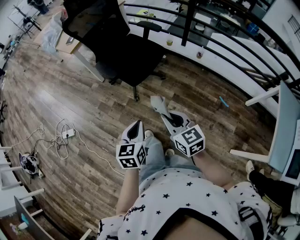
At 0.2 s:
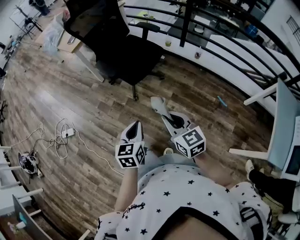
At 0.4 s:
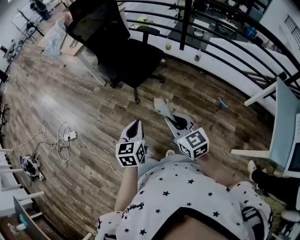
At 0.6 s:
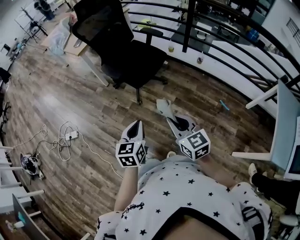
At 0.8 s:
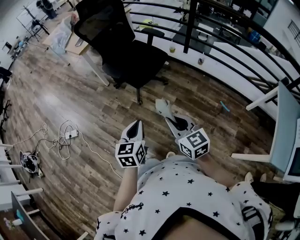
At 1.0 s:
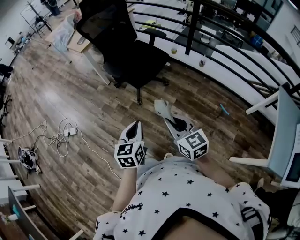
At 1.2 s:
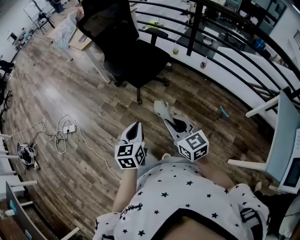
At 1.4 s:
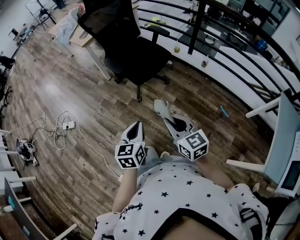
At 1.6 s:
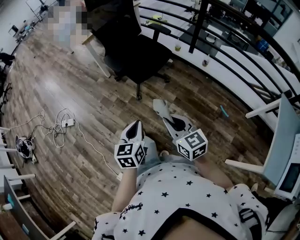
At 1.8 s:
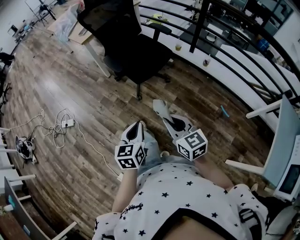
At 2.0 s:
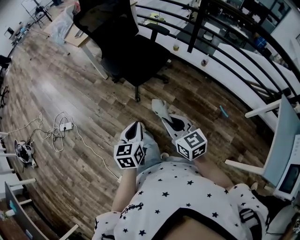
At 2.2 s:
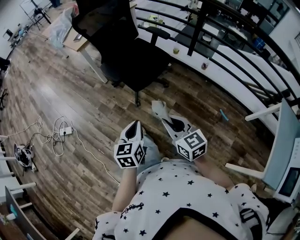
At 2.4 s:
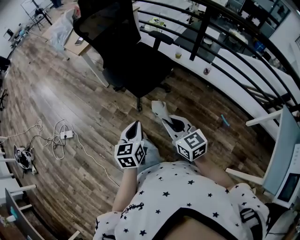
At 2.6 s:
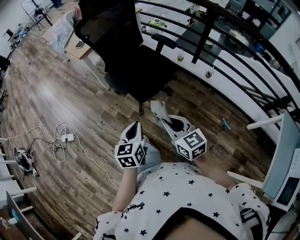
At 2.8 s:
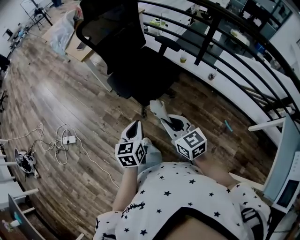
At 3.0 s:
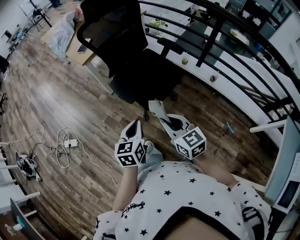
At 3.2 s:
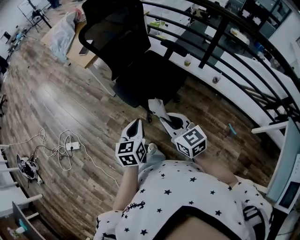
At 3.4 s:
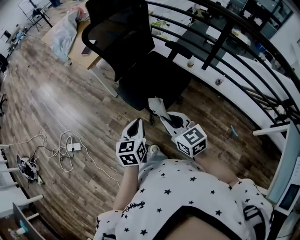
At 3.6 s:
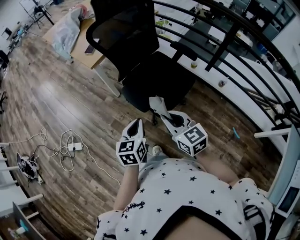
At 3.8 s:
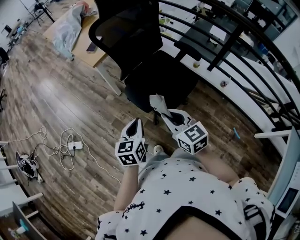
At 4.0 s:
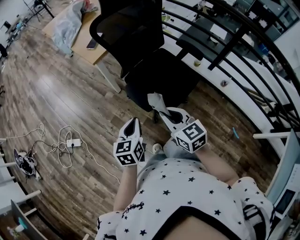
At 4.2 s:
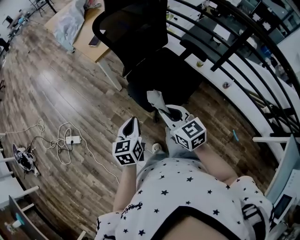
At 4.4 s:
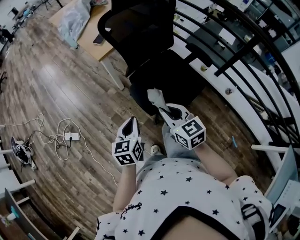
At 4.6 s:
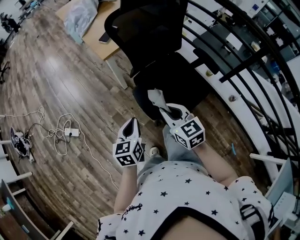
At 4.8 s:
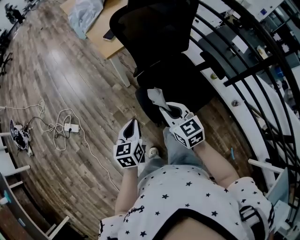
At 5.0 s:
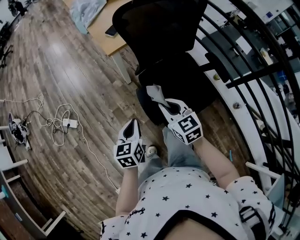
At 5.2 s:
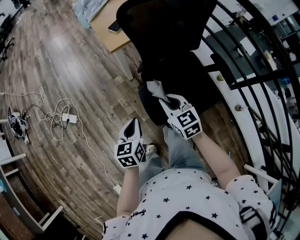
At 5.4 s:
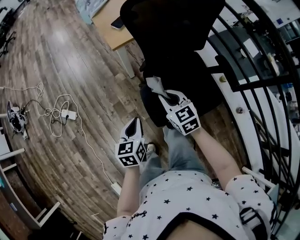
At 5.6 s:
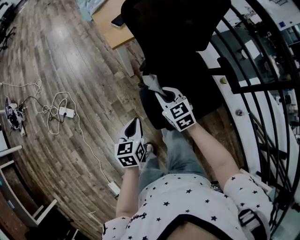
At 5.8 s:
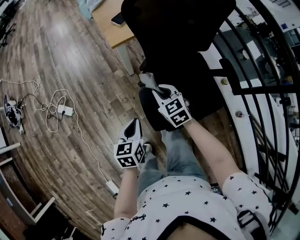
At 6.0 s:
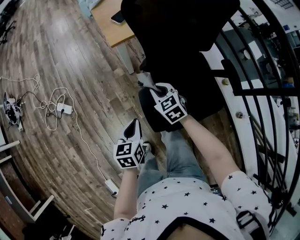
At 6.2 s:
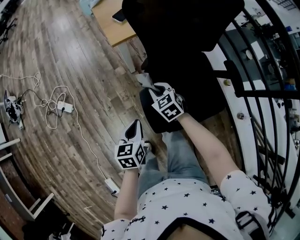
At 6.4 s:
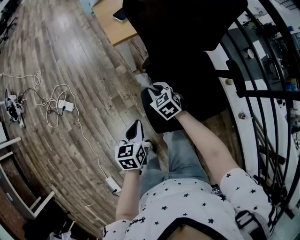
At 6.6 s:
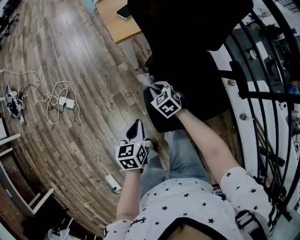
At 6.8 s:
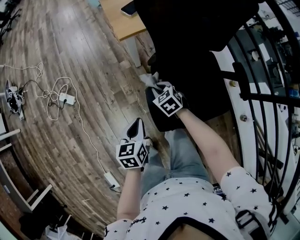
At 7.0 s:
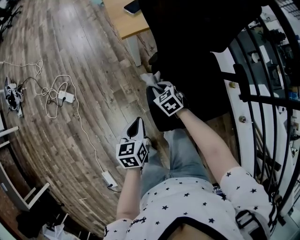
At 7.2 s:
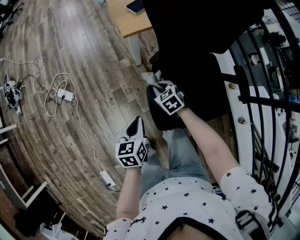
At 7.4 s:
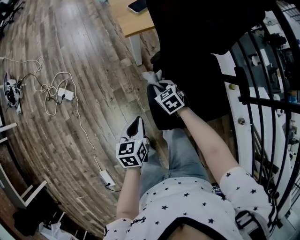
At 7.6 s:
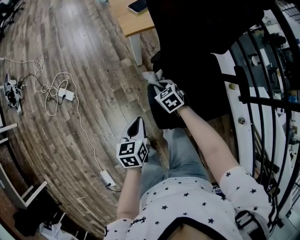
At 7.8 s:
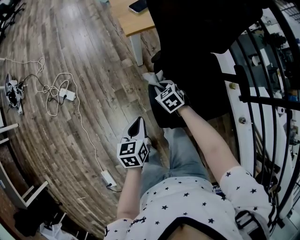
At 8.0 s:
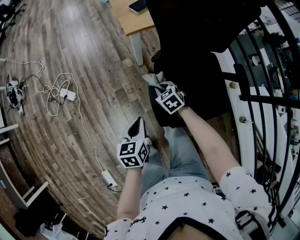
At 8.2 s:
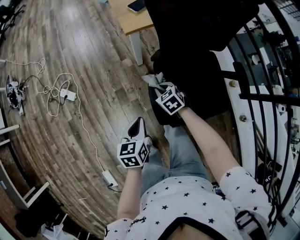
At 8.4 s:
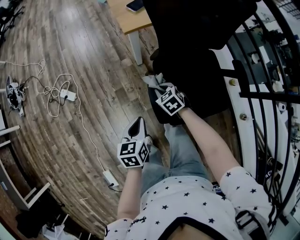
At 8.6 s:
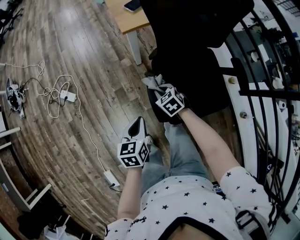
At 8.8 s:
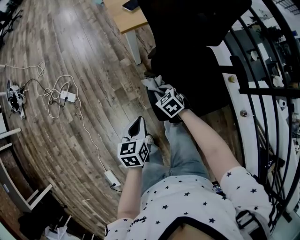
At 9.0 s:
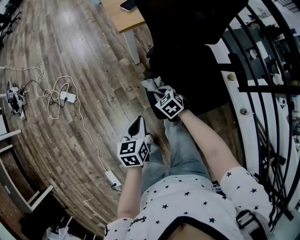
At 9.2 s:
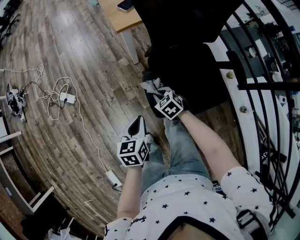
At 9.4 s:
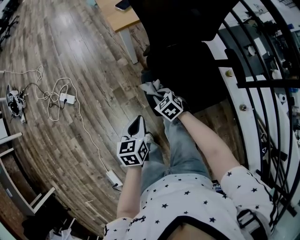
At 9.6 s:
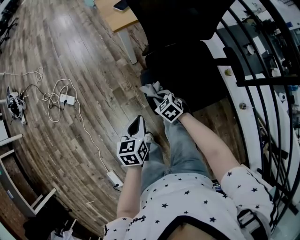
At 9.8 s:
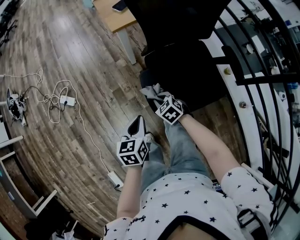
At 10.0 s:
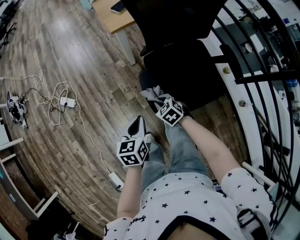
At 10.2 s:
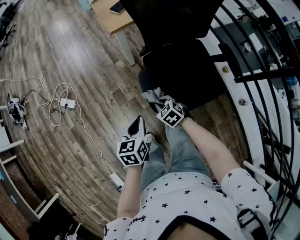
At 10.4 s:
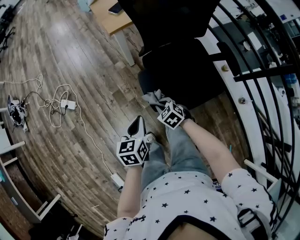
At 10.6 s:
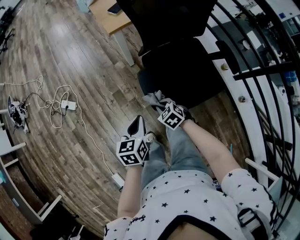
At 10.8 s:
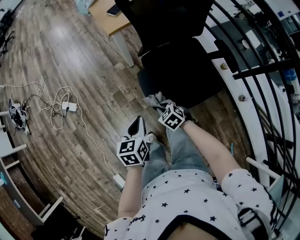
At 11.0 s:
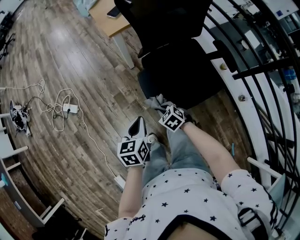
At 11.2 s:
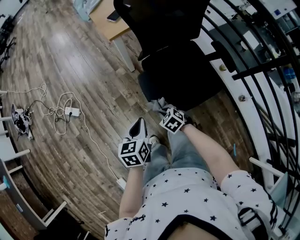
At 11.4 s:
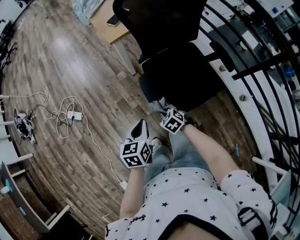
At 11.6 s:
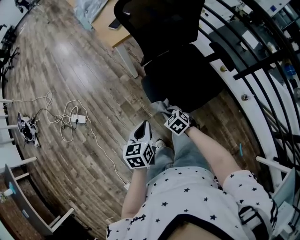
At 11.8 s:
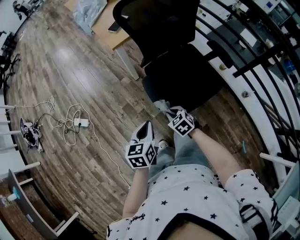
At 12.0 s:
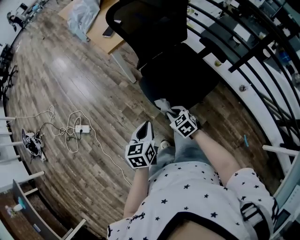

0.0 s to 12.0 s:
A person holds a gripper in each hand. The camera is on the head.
0.0 to 1.6 s: The right gripper goes roughly 5 cm backward. The left gripper ends up about 5 cm from where it was.
1.6 to 3.0 s: Both grippers move forward, some 25 cm.
3.0 to 4.4 s: Both grippers travel together forward and to the left, approximately 20 cm.
4.4 to 6.0 s: The left gripper heads downward and forward, covering approximately 15 cm, and rotates approximately 20 degrees, while the right gripper shifts some 30 cm forward and downward, and swivels approximately 30 degrees.
6.0 to 7.6 s: The right gripper heads downward, covering roughly 10 cm.
7.6 to 9.0 s: The right gripper shifts about 10 cm backward.
9.0 to 10.4 s: The right gripper moves backward, approximately 10 cm.
10.4 to 12.0 s: The right gripper is displaced upward and backward by roughly 10 cm, and changes its angle by about 20 degrees; the left gripper ends up approximately 5 cm from where it was.

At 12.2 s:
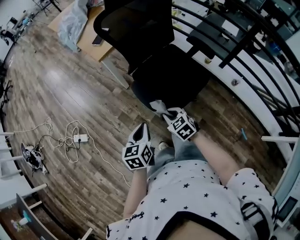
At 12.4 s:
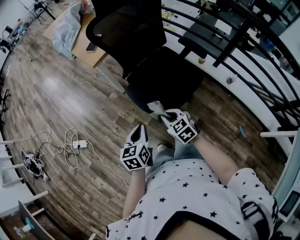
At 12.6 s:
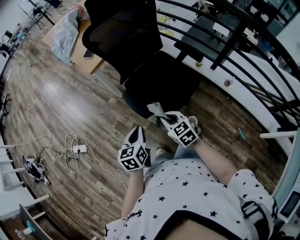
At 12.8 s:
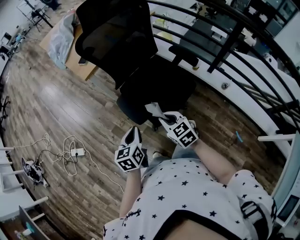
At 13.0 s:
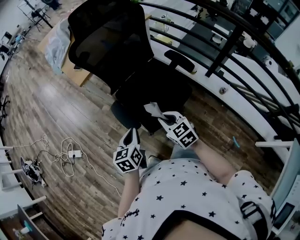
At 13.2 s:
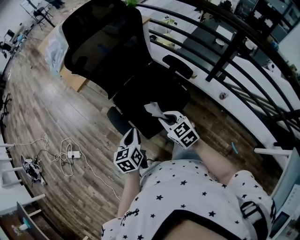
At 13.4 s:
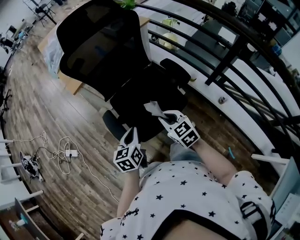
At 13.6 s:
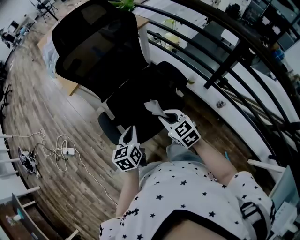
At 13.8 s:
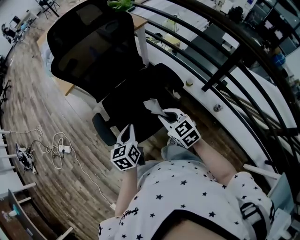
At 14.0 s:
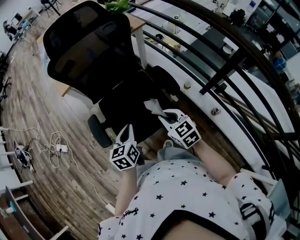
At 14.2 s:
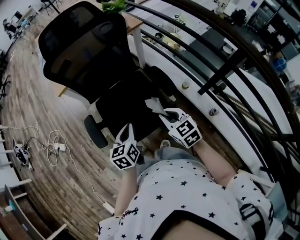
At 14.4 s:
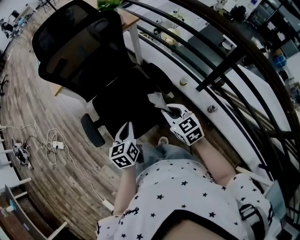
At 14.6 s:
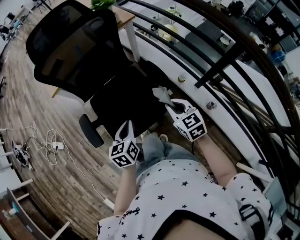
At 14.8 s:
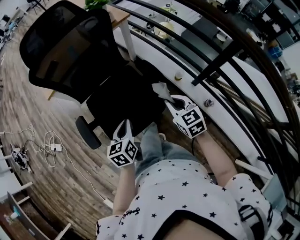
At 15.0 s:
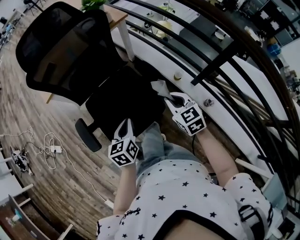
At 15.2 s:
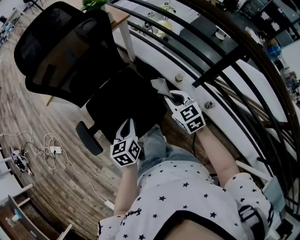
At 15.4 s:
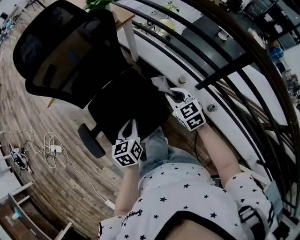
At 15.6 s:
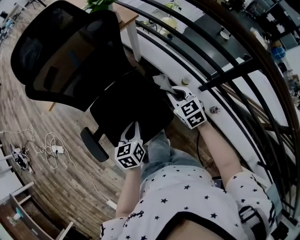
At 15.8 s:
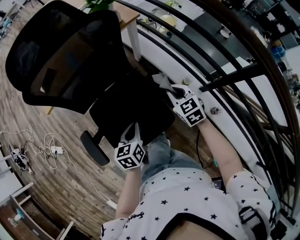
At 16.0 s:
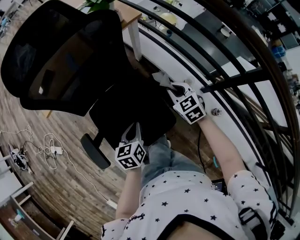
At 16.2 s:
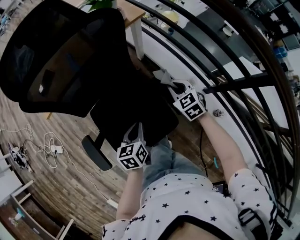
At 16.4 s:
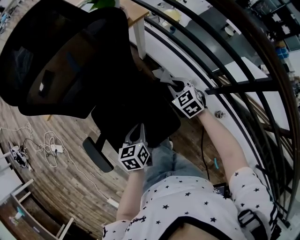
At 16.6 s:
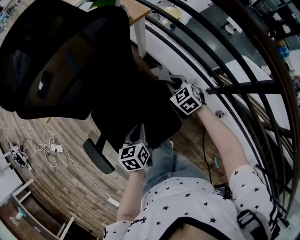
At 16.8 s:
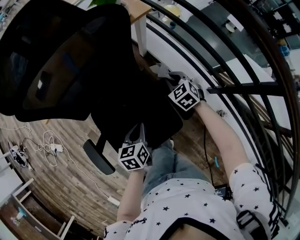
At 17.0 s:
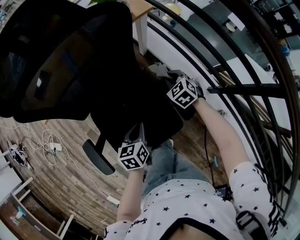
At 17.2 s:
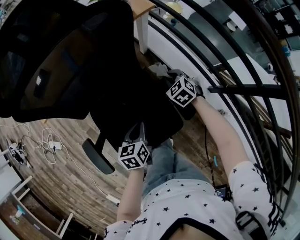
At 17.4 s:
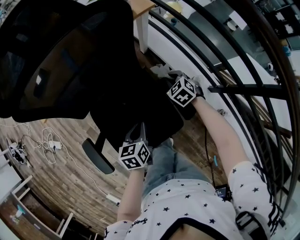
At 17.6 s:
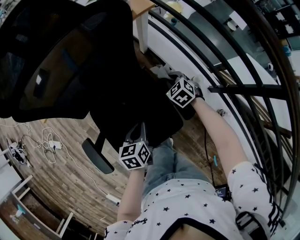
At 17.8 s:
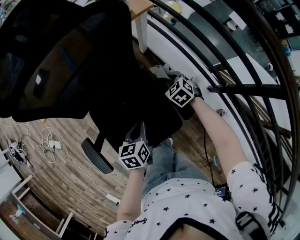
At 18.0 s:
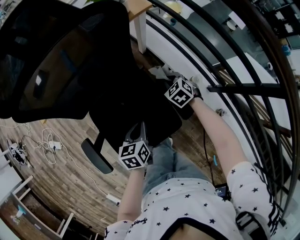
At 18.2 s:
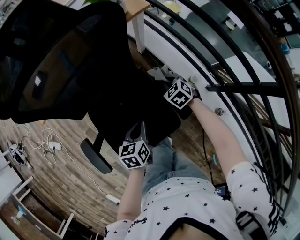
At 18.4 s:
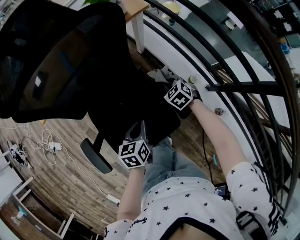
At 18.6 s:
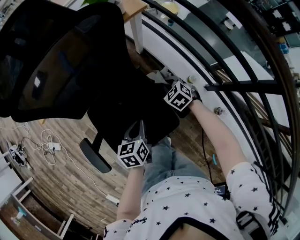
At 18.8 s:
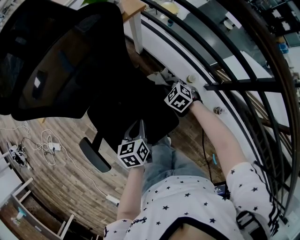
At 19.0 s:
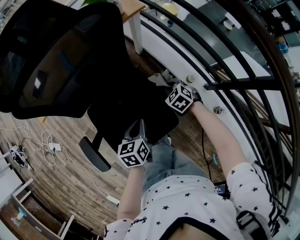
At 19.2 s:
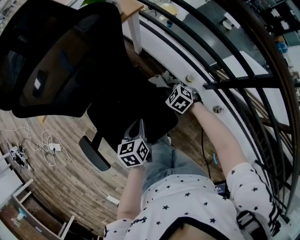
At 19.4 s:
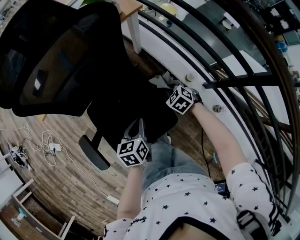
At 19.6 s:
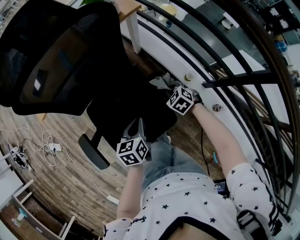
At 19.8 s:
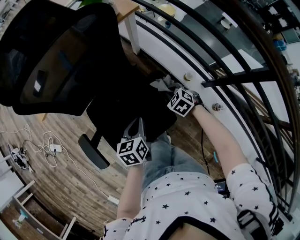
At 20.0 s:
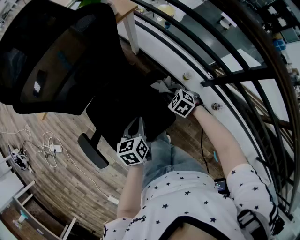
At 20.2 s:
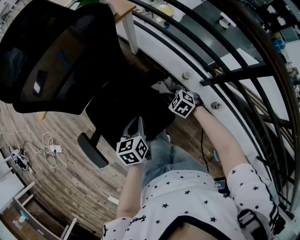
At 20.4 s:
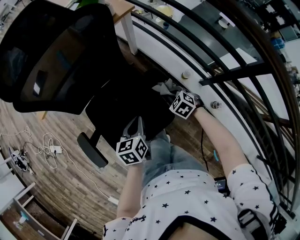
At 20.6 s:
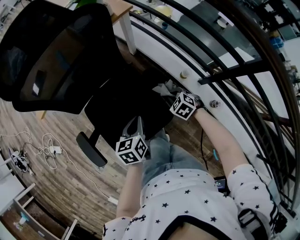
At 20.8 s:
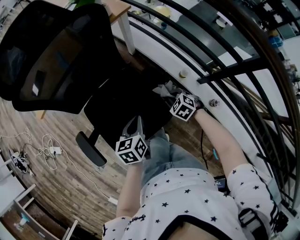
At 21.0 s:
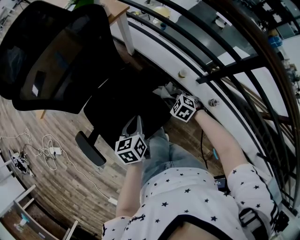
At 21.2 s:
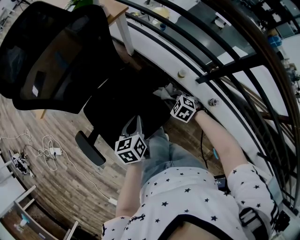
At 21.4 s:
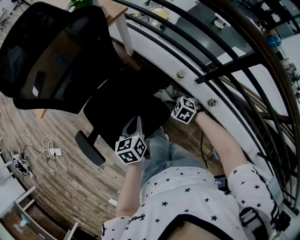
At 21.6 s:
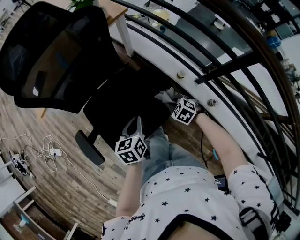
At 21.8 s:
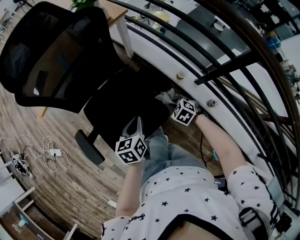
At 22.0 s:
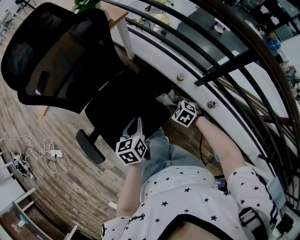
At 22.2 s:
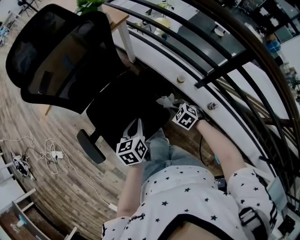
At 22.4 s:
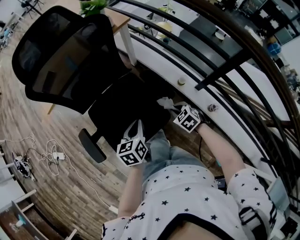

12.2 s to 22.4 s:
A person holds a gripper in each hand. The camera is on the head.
12.2 to 13.6 s: The right gripper travels to the right by about 25 cm; the left gripper heads to the right and forward, covering approximately 25 cm.
13.6 to 15.2 s: The two grippers go some 20 cm to the right and forward.
15.2 to 16.6 s: The right gripper travels forward and downward by about 25 cm; the left gripper moves forward and downward, roughly 15 cm.
16.6 to 18.0 s: The right gripper moves downward, about 5 cm.
18.0 to 19.4 s: The right gripper heads backward, covering about 10 cm.
19.4 to 21.0 s: The right gripper goes approximately 10 cm backward.
21.0 to 22.4 s: The right gripper heads backward, covering about 5 cm; the left gripper ends up roughly 5 cm from where it was.

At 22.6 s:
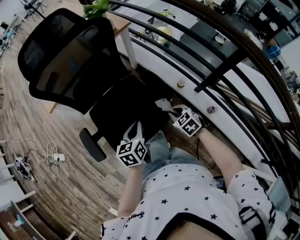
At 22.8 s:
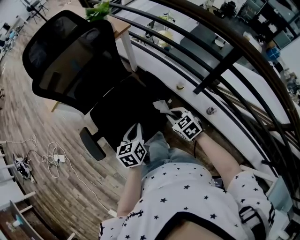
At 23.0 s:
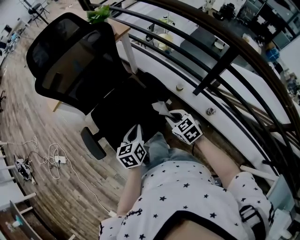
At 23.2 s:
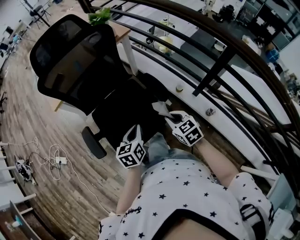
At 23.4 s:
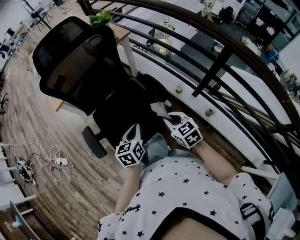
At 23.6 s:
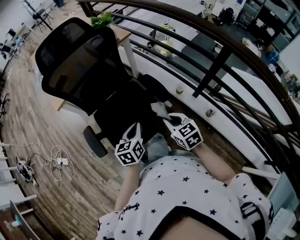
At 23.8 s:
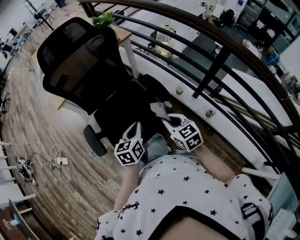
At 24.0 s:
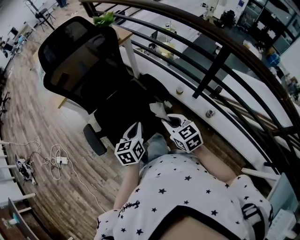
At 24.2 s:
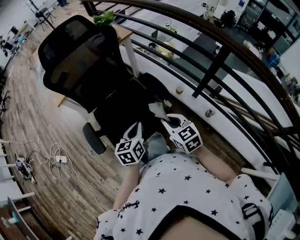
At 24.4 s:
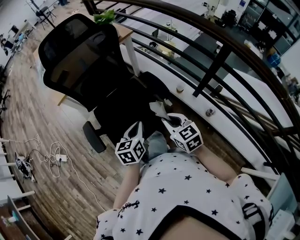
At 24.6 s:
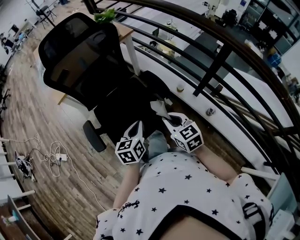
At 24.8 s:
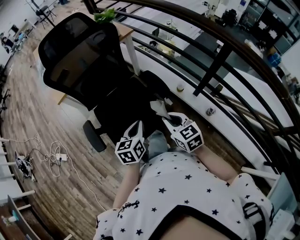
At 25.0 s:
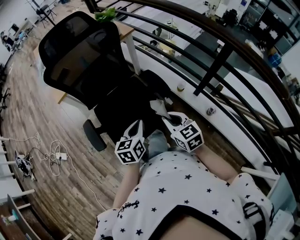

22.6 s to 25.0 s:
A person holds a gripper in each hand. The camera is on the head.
22.6 to 23.8 s: The right gripper shifts approximately 15 cm upward and backward, and swivels roughly 20 degrees. The left gripper shifts by roughly 5 cm.
23.8 to 25.0 s: The grippers stay close to where they were, moving slightly.
